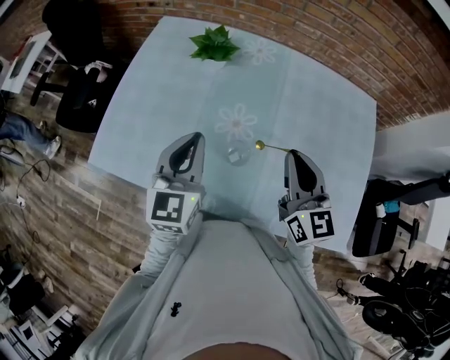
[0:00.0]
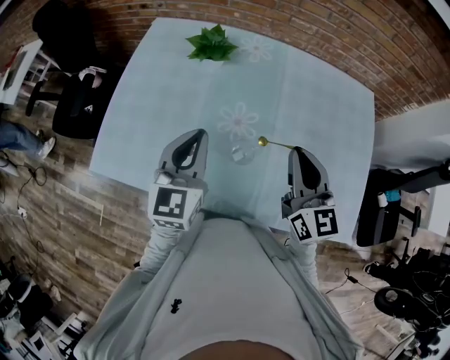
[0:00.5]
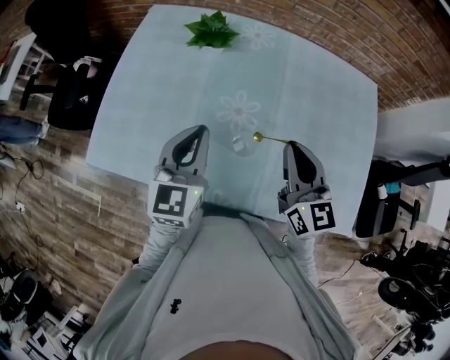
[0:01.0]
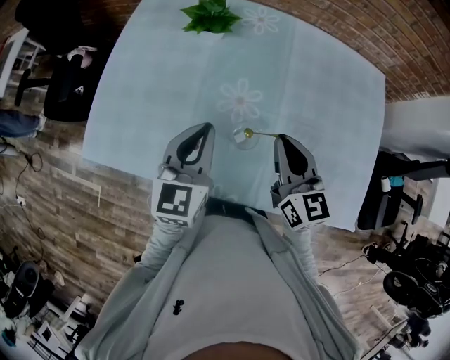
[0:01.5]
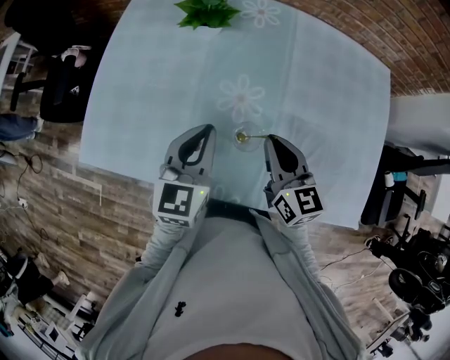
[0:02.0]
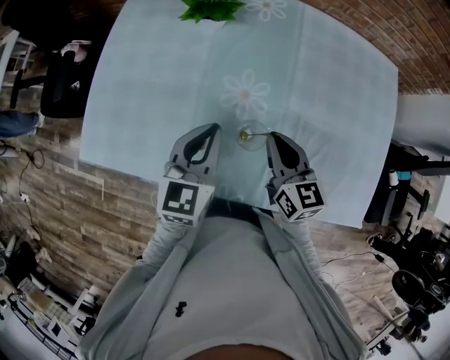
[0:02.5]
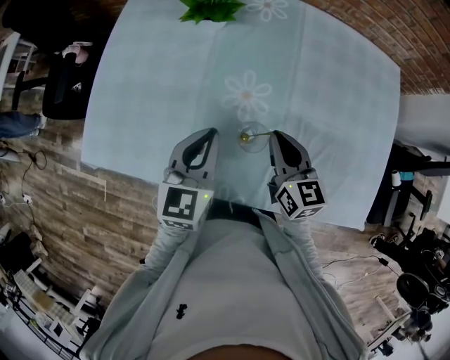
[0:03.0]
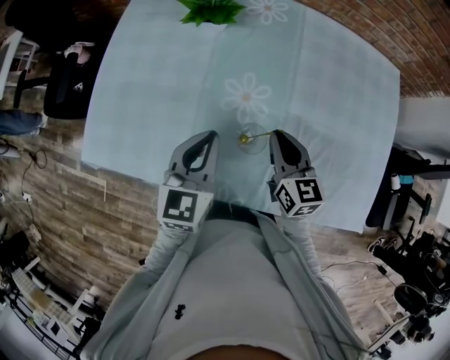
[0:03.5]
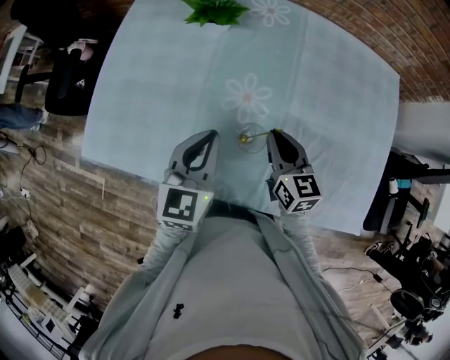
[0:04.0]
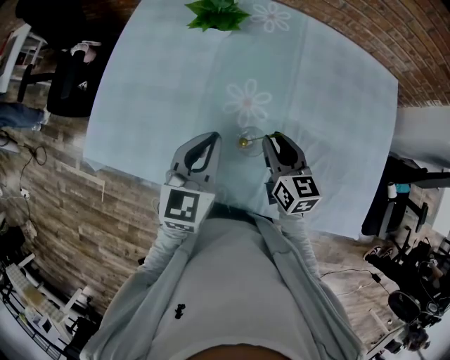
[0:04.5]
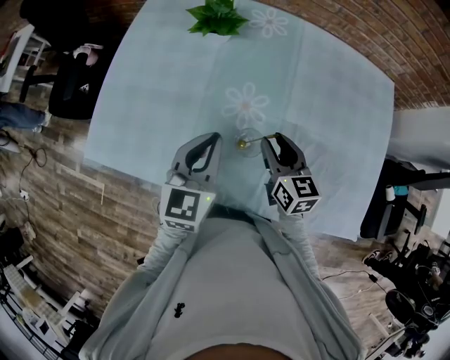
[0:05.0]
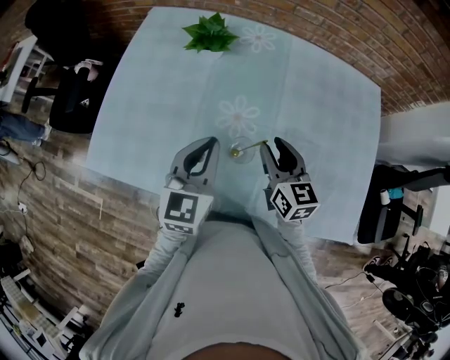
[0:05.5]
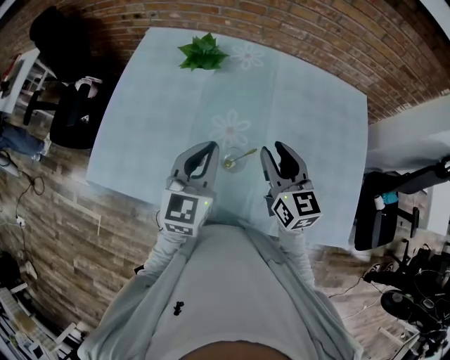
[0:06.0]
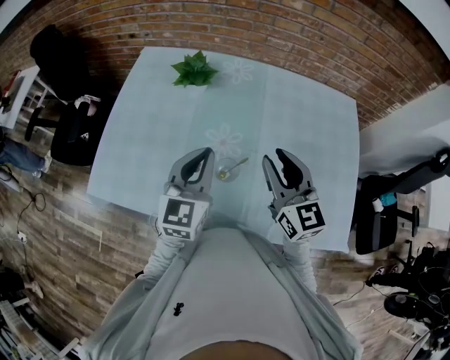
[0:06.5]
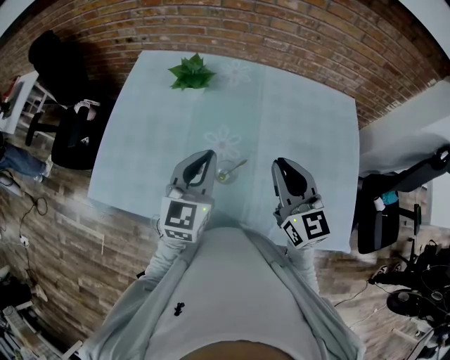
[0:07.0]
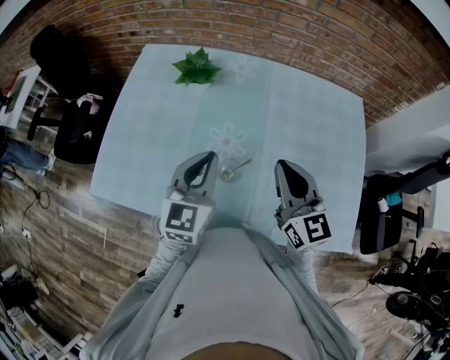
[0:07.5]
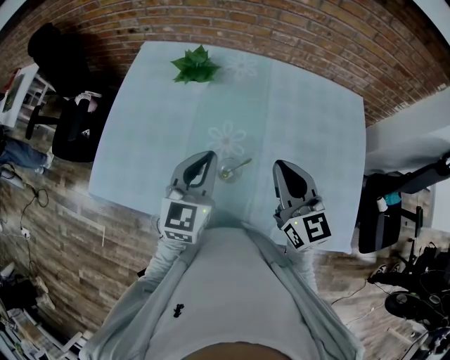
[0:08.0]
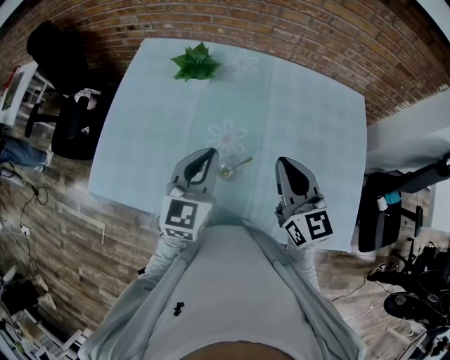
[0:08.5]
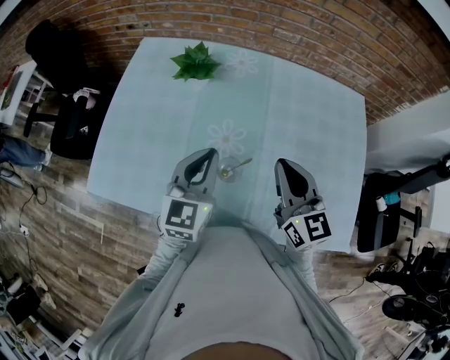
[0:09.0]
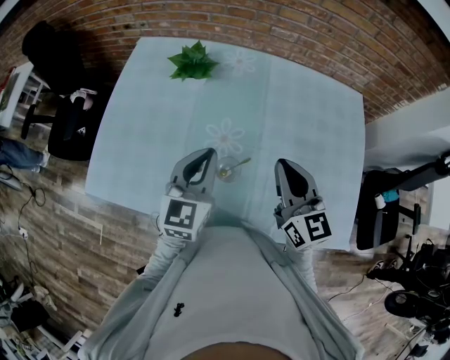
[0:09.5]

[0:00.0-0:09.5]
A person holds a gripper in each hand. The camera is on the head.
0:00.0 to 0:02.0: The left gripper shifts roughly 10 cm downward; the right gripper goes roughly 15 cm downward and to the left.
0:02.0 to 0:04.0: The right gripper shifts approximately 5 cm downward.
0:04.0 to 0:05.5: The right gripper shifts approximately 5 cm upward, and opens up.
0:05.5 to 0:07.5: The right gripper is displaced upward by approximately 10 cm, and closes.
0:07.5 to 0:09.5: The grippers make only small movements.

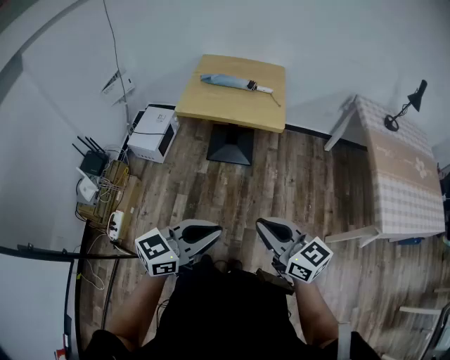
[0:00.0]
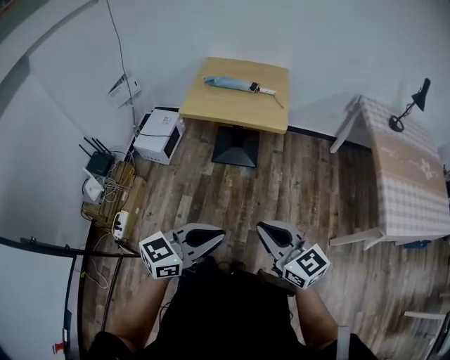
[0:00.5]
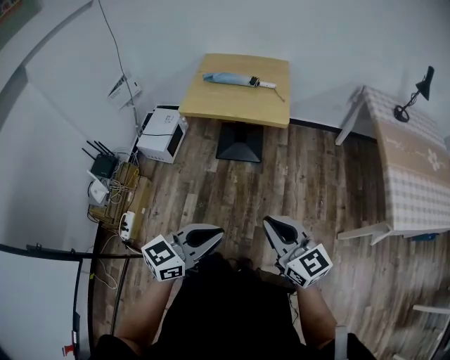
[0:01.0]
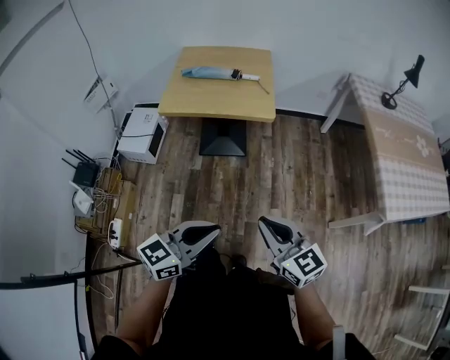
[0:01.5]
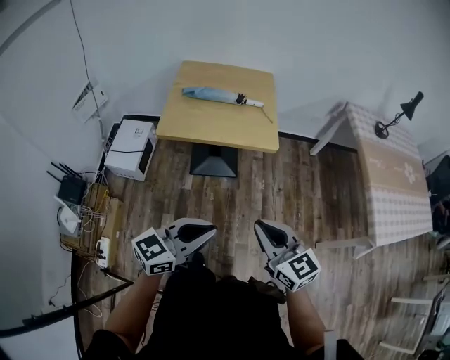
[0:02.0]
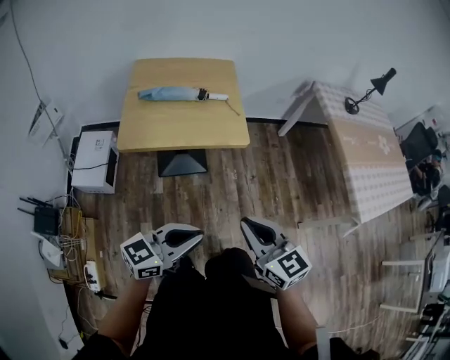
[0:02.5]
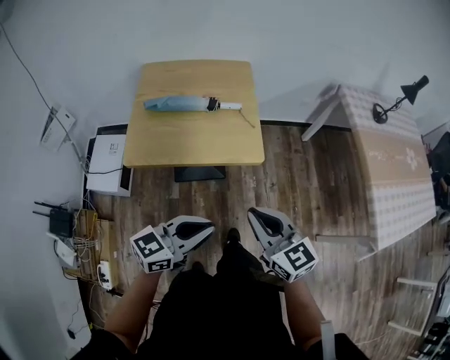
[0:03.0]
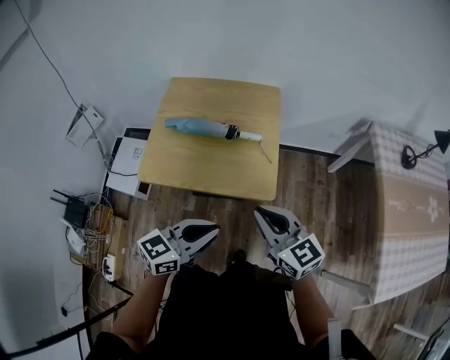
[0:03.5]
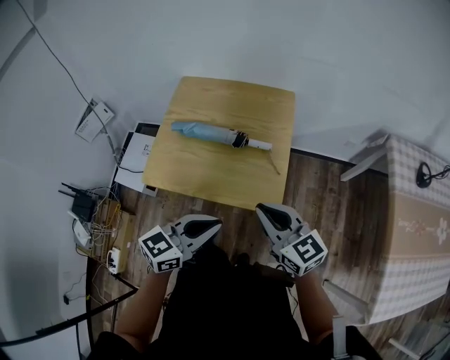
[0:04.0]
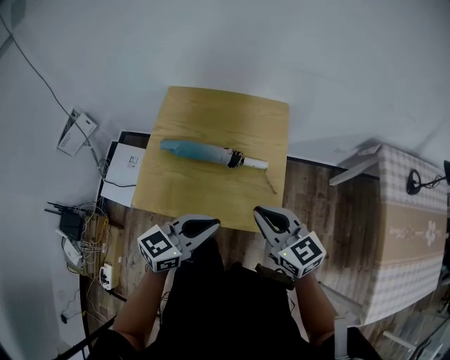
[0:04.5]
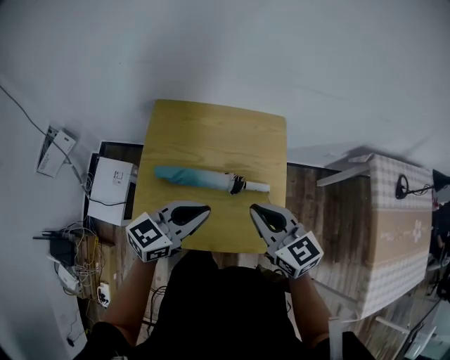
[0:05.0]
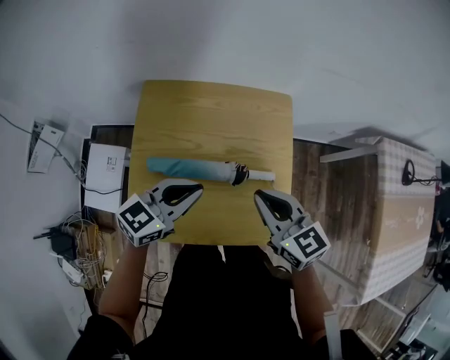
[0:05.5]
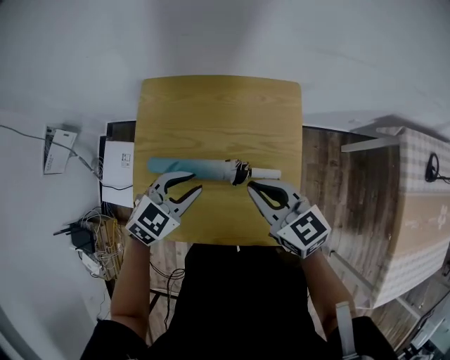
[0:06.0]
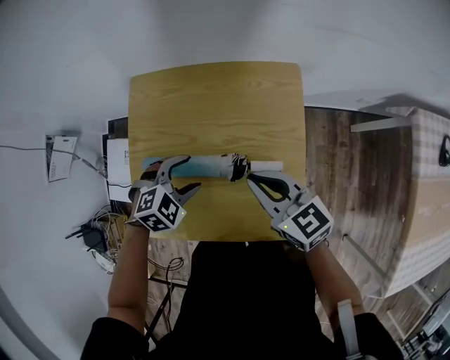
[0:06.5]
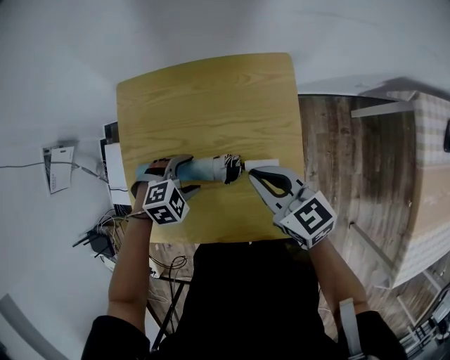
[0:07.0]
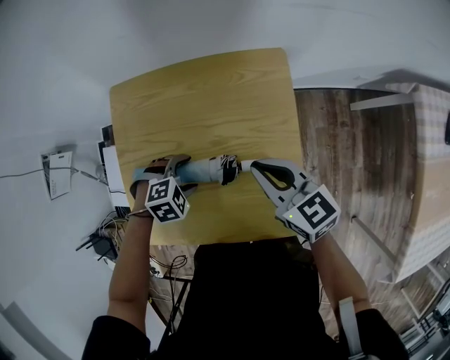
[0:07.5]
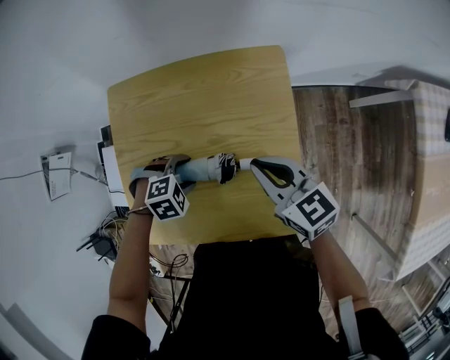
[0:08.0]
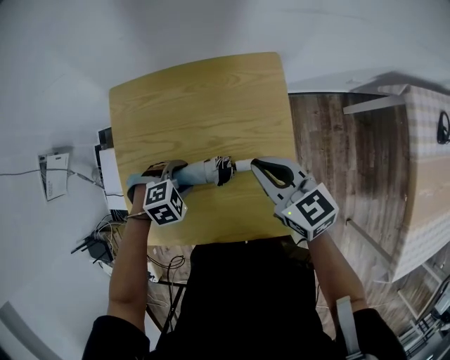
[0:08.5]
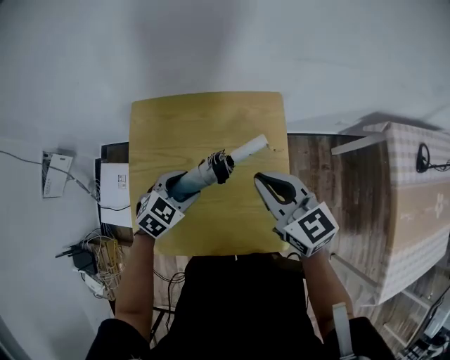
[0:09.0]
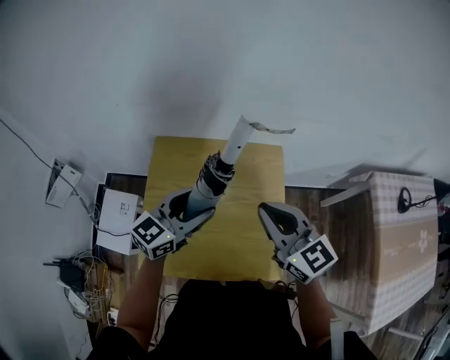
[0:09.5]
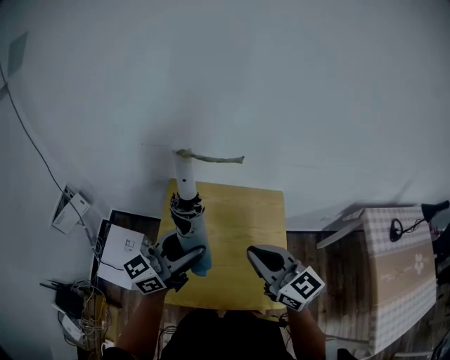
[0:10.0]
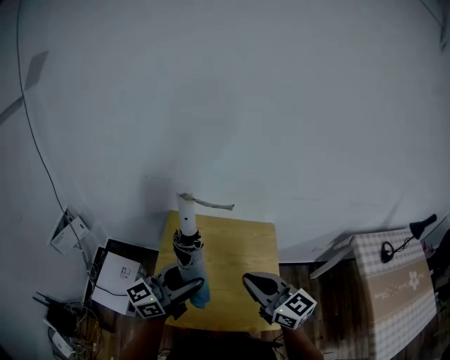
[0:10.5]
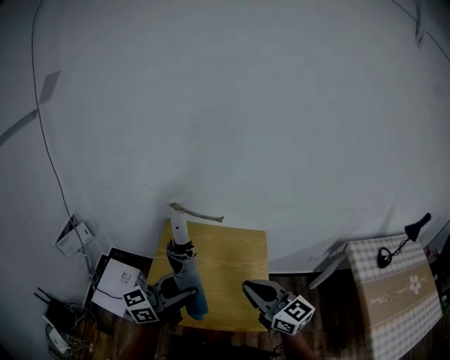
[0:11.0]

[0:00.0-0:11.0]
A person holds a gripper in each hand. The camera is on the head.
0:00.0 to 0:02.0: The left gripper travels forward and to the left by about 15 cm. The right gripper heads forward, covering some 15 cm, and swivels approximately 20 degrees.
0:02.0 to 0:03.5: The grippers both shift forward by approximately 30 cm.
0:03.5 to 0:05.5: The grippers both shift forward and to the left by approximately 35 cm.
0:05.5 to 0:07.5: The right gripper moves some 15 cm. The left gripper shifts some 20 cm downward, tips its fingers downward by some 60 degrees, and opens up.
0:07.5 to 0:09.0: Both grippers move upward, about 10 cm. The left gripper turns by about 40 degrees.
0:09.0 to 0:11.0: The left gripper travels upward and backward by approximately 35 cm, and tips its fingers upward by approximately 70 degrees. Meanwhile the right gripper heads backward and upward, covering roughly 25 cm.

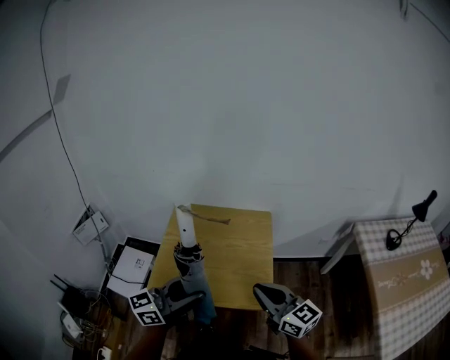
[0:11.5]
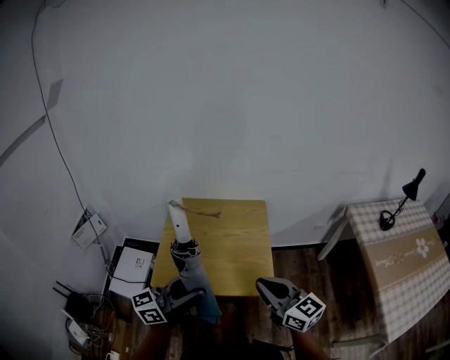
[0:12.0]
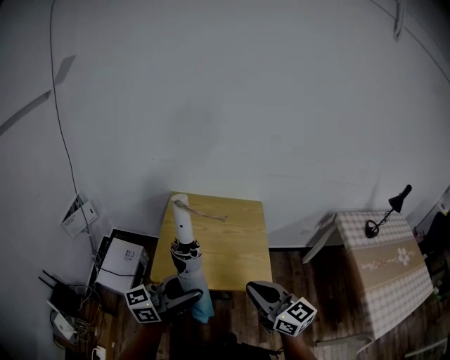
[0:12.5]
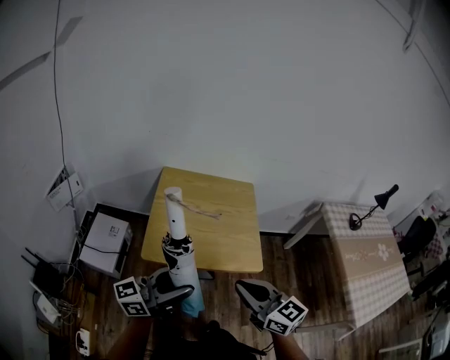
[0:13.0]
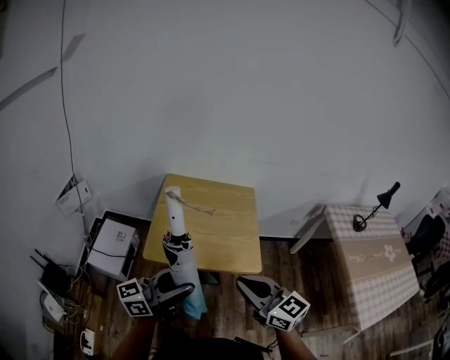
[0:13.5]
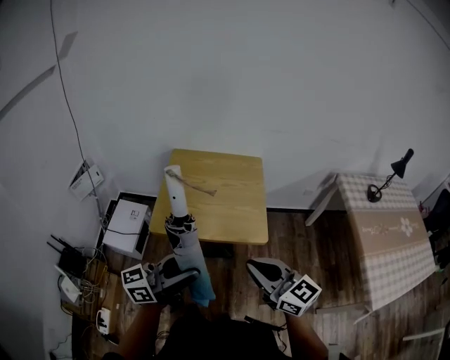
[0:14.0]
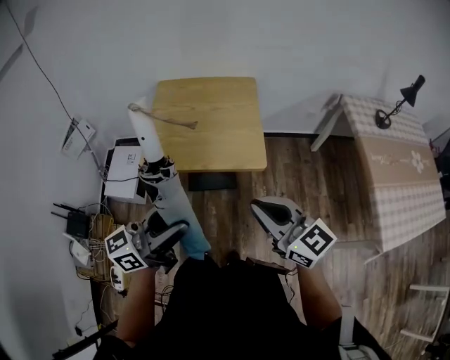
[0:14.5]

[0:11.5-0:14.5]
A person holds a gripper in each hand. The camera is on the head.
0:11.5 to 0:13.0: Both grippers travel together backward and to the left, about 20 cm.
0:13.0 to 0:14.5: Both grippers travel together to the right and backward, about 15 cm.

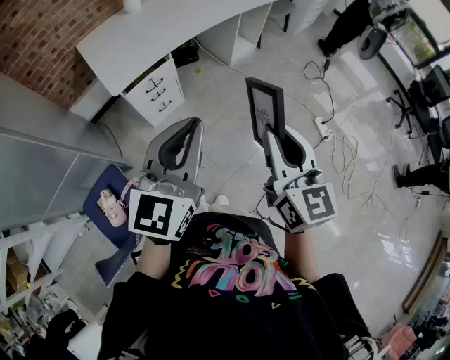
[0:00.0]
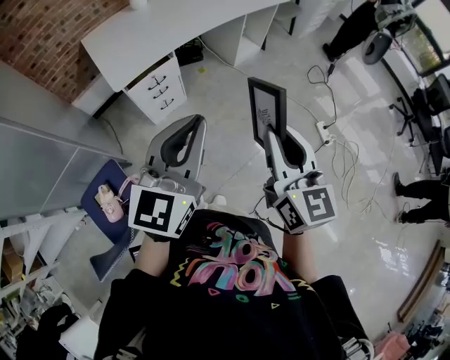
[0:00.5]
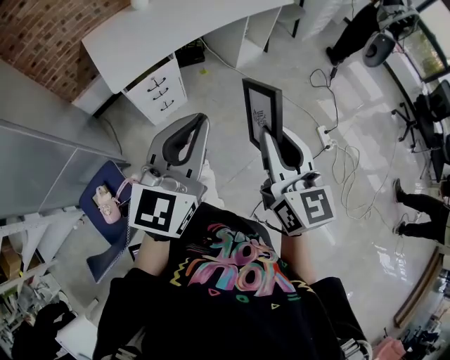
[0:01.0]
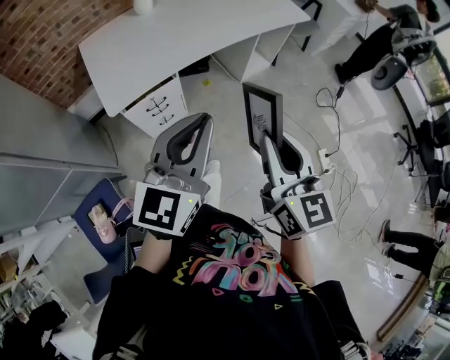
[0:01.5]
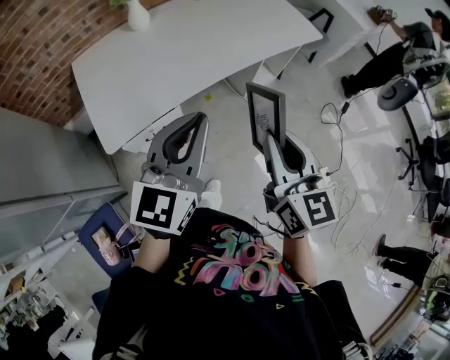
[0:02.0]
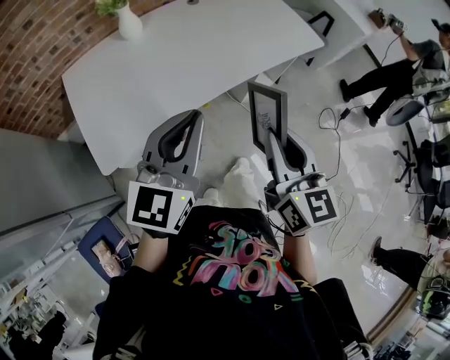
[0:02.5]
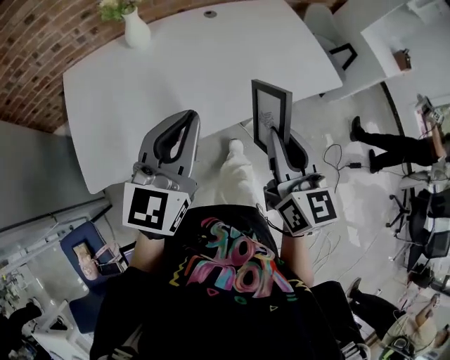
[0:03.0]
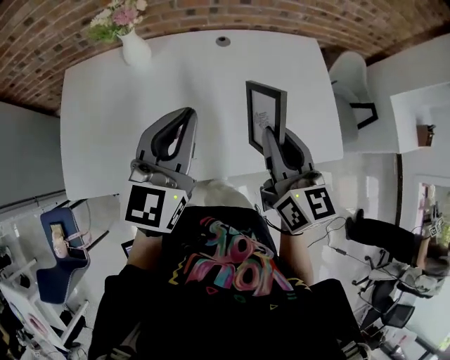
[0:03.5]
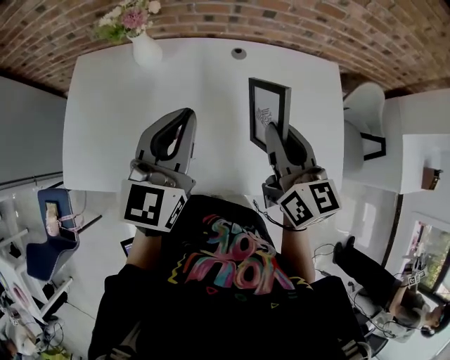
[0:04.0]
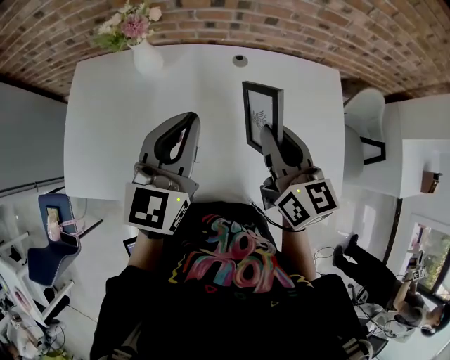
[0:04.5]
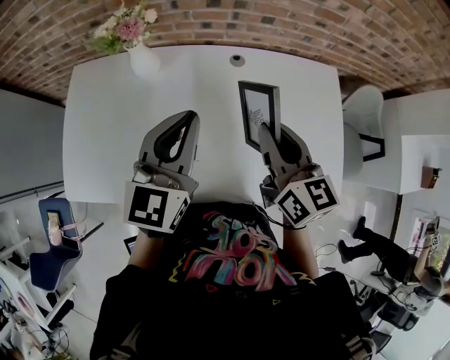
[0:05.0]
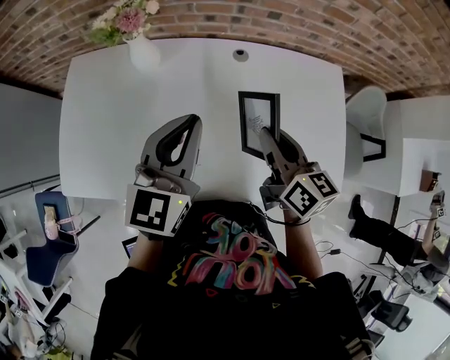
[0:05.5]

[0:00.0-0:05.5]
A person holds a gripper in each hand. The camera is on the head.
0:00.0 to 0:02.0: The pair of grippers is taken forward, about 40 cm.
0:02.0 to 0:03.5: Both grippers are carried some 50 cm. The right gripper rotates roughly 30 degrees. Meanwhile the left gripper rotates about 30 degrees.
0:03.5 to 0:05.5: The right gripper heads forward and downward, covering some 15 cm, and swivels some 20 degrees. Meanwhile the left gripper goes about 10 cm forward.
